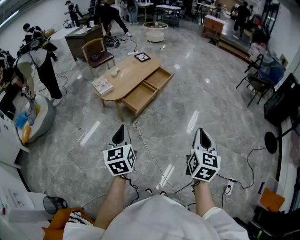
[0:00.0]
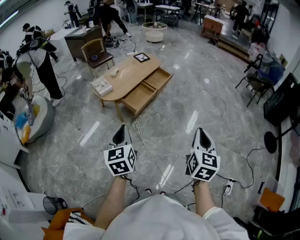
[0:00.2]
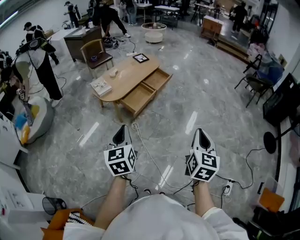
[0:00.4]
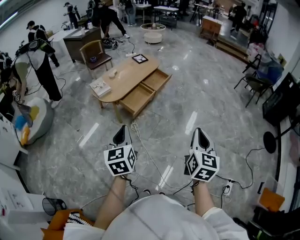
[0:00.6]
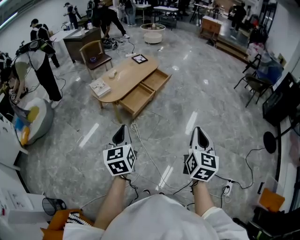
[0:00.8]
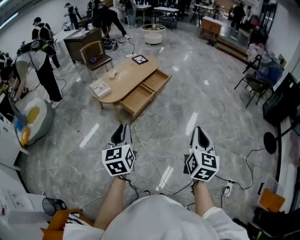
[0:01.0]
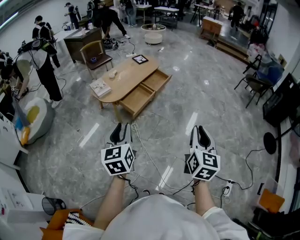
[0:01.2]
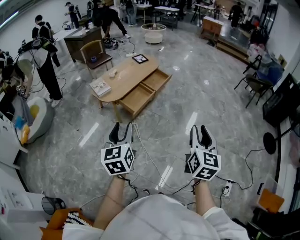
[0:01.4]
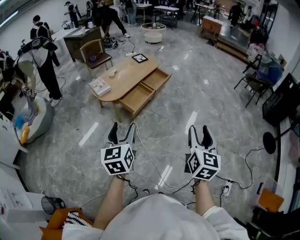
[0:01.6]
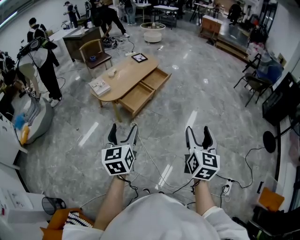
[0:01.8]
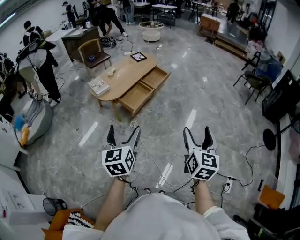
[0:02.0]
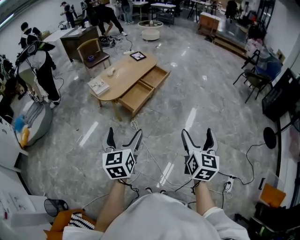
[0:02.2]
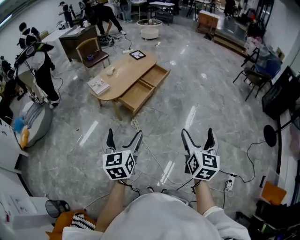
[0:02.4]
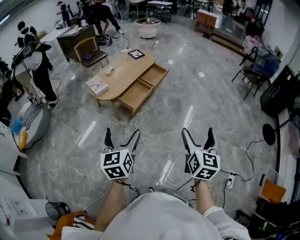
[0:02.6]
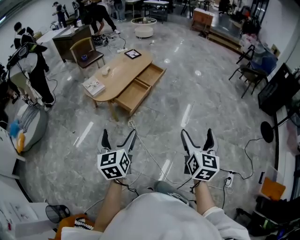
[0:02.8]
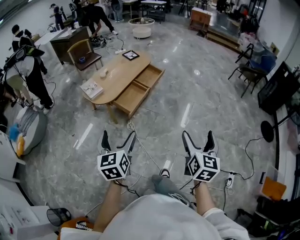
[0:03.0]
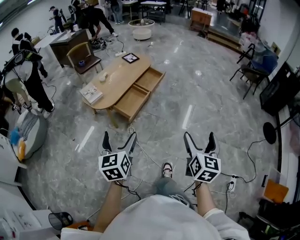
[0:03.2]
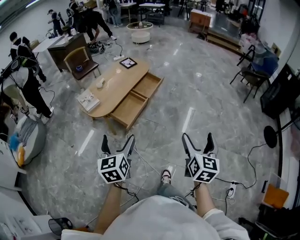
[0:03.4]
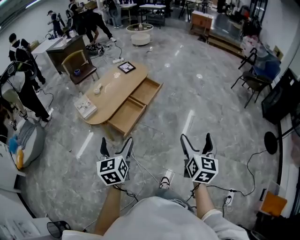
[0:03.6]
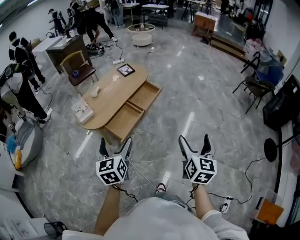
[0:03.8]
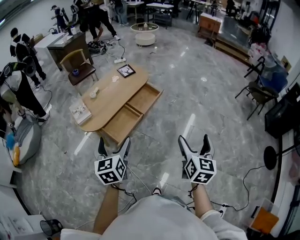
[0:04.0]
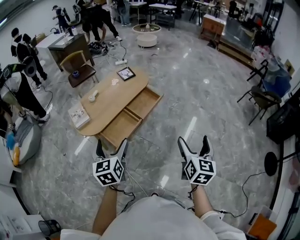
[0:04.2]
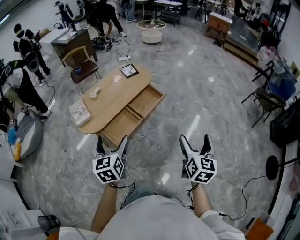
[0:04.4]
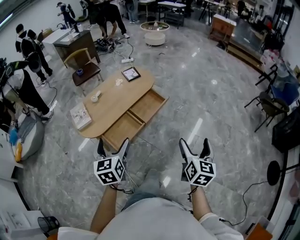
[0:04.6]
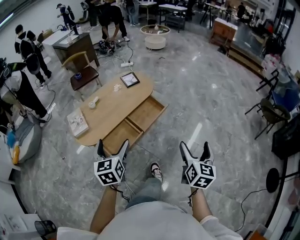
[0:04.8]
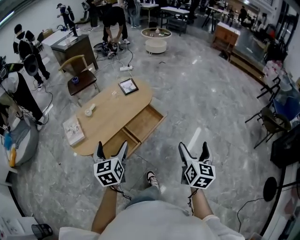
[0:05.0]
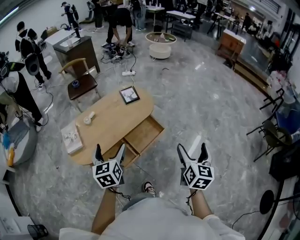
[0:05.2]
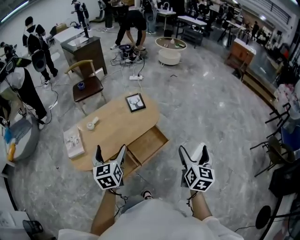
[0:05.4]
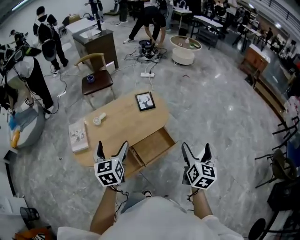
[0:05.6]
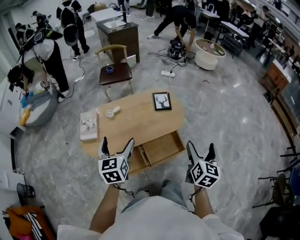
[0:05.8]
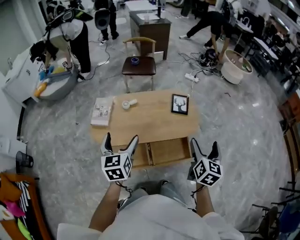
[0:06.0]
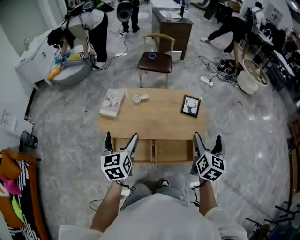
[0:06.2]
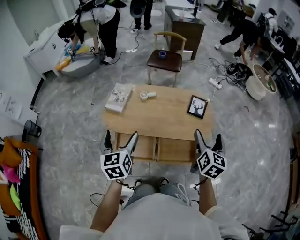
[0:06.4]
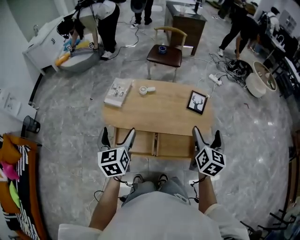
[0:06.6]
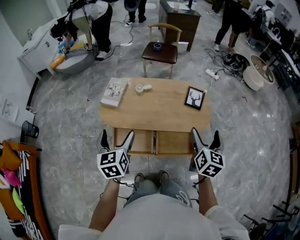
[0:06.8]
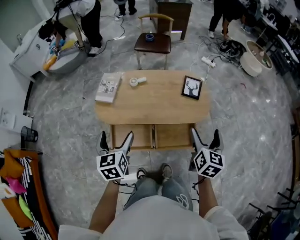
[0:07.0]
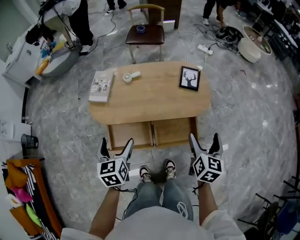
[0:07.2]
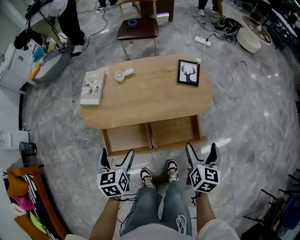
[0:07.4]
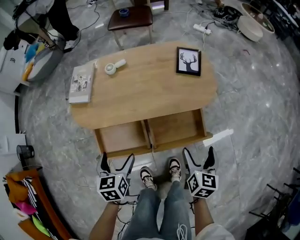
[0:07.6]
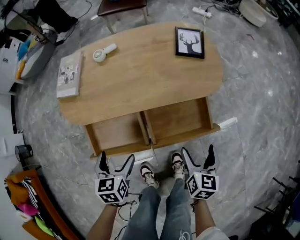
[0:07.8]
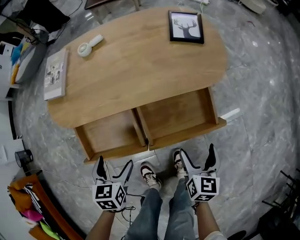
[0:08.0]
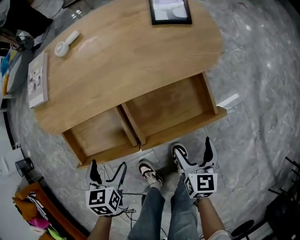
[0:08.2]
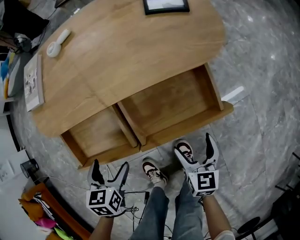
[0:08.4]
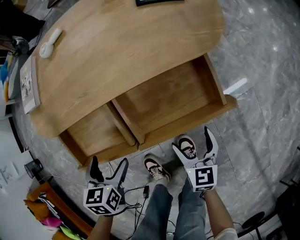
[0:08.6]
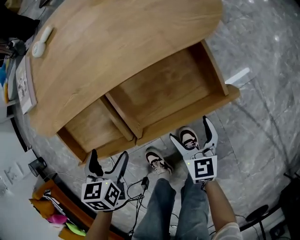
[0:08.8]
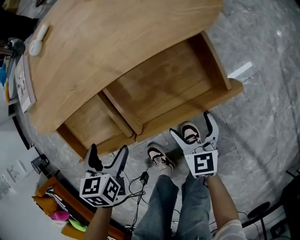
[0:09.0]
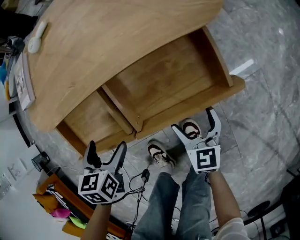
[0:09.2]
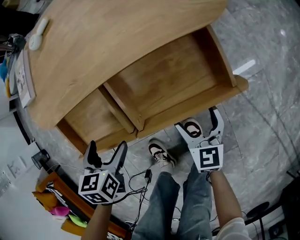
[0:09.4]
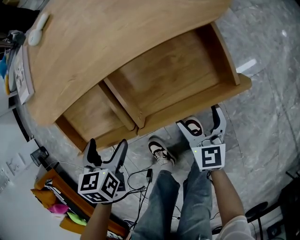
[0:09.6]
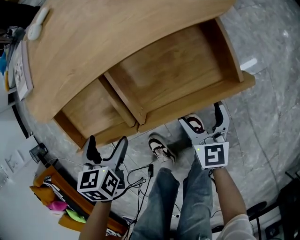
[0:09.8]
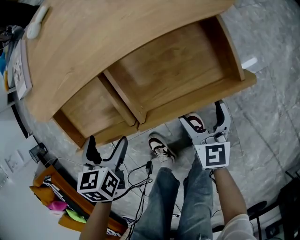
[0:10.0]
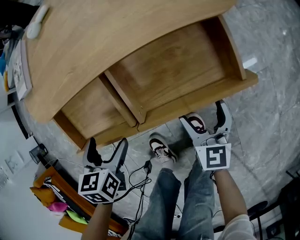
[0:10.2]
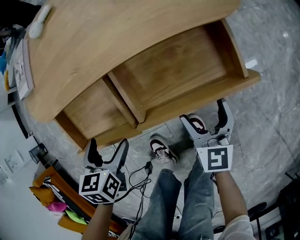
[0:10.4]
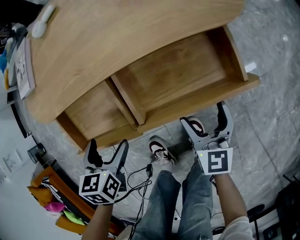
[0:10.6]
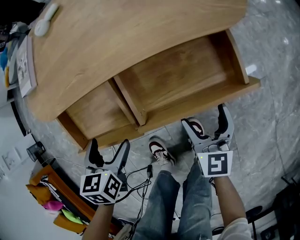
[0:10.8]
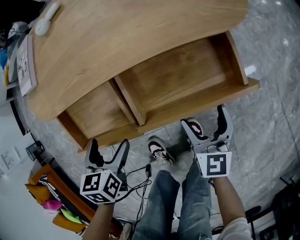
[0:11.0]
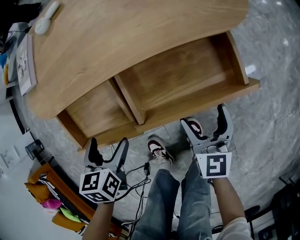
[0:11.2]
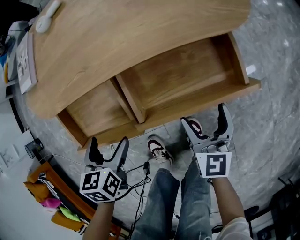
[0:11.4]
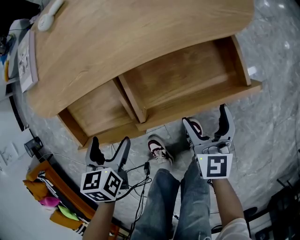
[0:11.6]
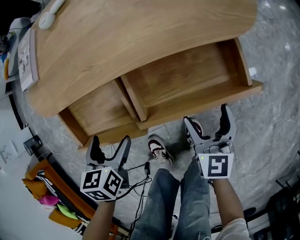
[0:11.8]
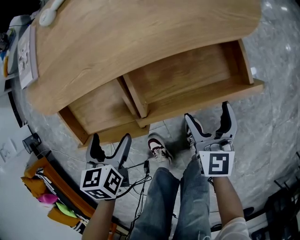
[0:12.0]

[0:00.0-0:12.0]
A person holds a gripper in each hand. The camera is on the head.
0:00.0 to 0:01.6: The right gripper opens its fingers, while the left gripper opens its fingers.
0:01.6 to 0:03.0: The left gripper changes place by roughly 5 cm, and opens. Meanwhile the right gripper changes place by some 5 cm, and opens.
0:03.0 to 0:04.4: Both grippers travel together forward, approximately 40 cm.
0:04.4 to 0:06.0: The right gripper changes place by about 60 cm, and changes its angle by some 30 degrees, while the left gripper shifts by approximately 35 cm, and changes its angle by roughly 40 degrees.
0:06.0 to 0:07.6: The two grippers go approximately 30 cm downward. The left gripper rotates some 20 degrees.
0:07.6 to 0:09.0: The grippers both shift downward by about 25 cm. The left gripper changes its angle by about 20 degrees.
0:09.0 to 0:10.4: The grippers stay close to where they were, moving slightly.
0:10.4 to 0:12.0: The grippers make only small movements.

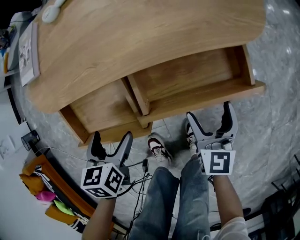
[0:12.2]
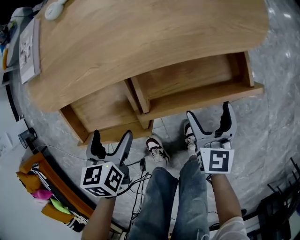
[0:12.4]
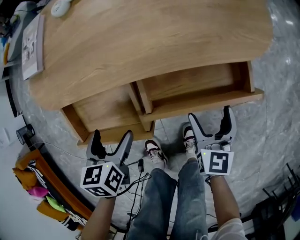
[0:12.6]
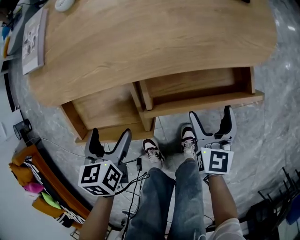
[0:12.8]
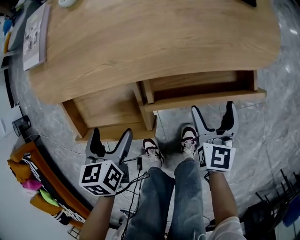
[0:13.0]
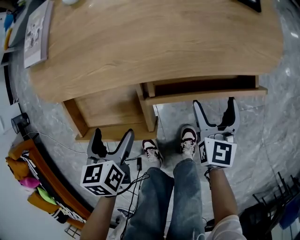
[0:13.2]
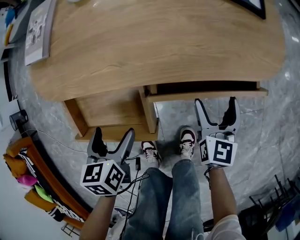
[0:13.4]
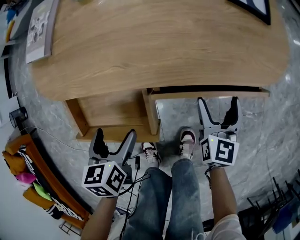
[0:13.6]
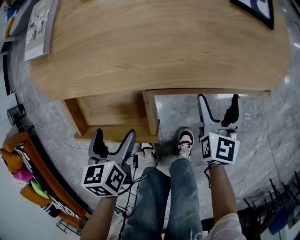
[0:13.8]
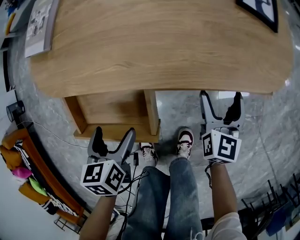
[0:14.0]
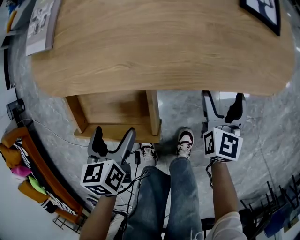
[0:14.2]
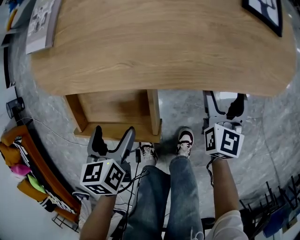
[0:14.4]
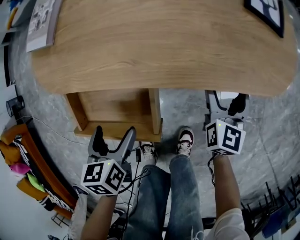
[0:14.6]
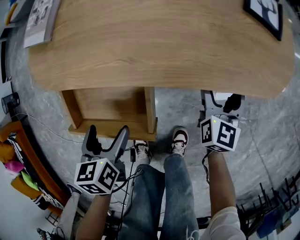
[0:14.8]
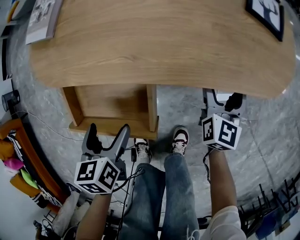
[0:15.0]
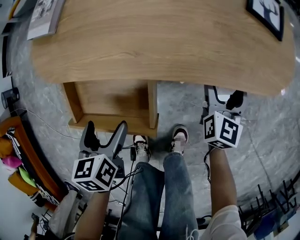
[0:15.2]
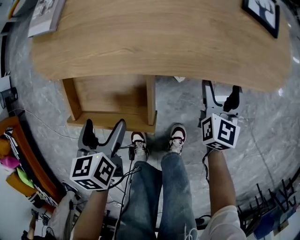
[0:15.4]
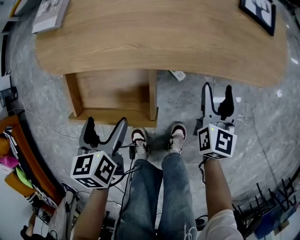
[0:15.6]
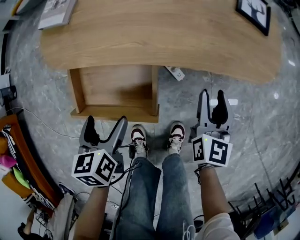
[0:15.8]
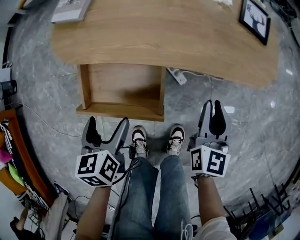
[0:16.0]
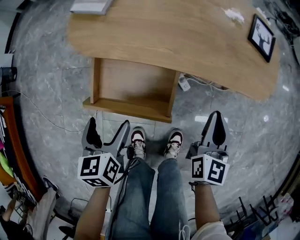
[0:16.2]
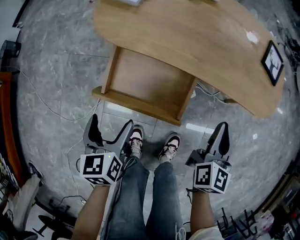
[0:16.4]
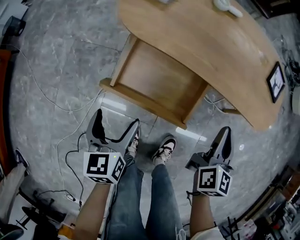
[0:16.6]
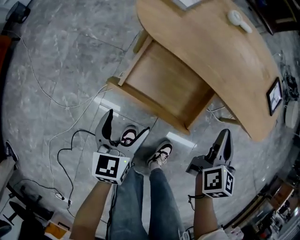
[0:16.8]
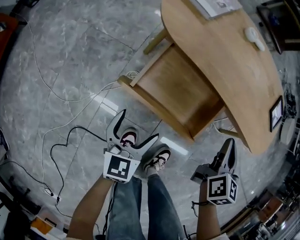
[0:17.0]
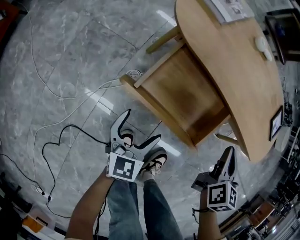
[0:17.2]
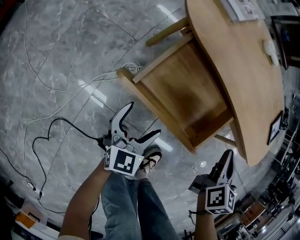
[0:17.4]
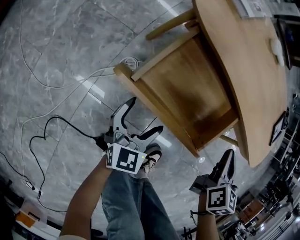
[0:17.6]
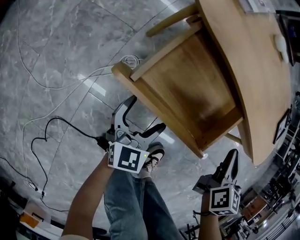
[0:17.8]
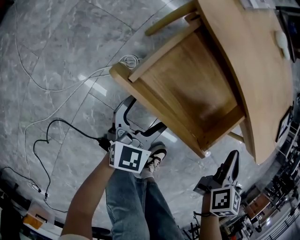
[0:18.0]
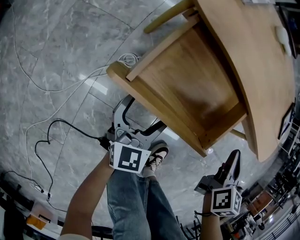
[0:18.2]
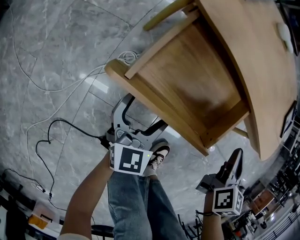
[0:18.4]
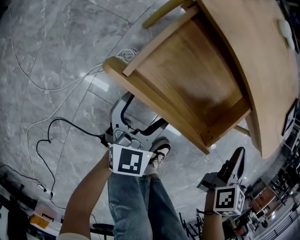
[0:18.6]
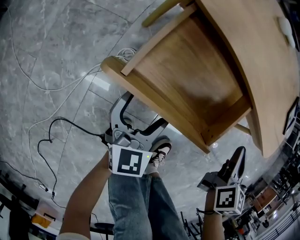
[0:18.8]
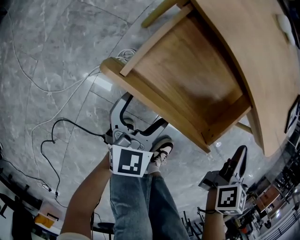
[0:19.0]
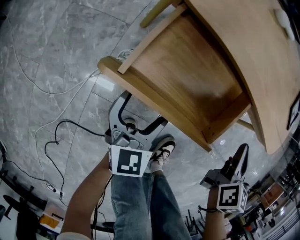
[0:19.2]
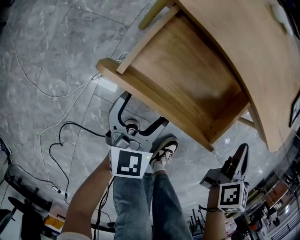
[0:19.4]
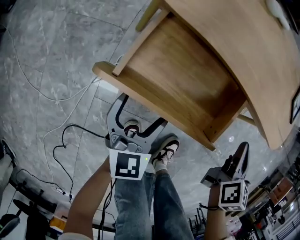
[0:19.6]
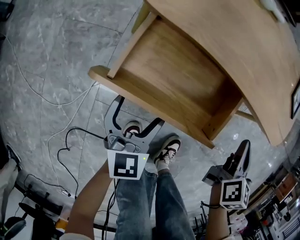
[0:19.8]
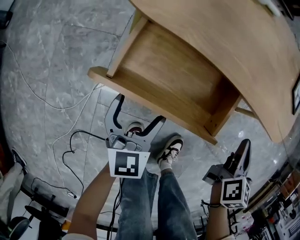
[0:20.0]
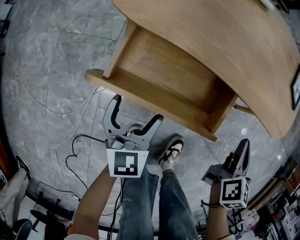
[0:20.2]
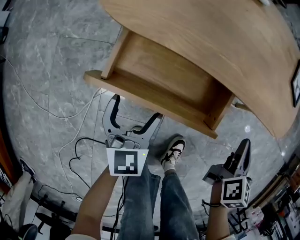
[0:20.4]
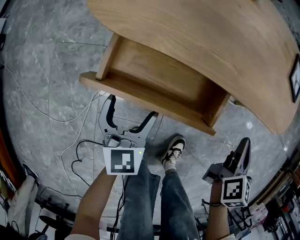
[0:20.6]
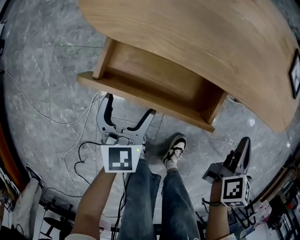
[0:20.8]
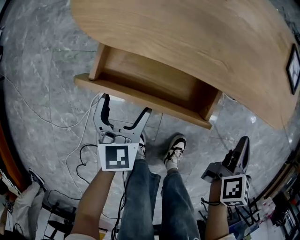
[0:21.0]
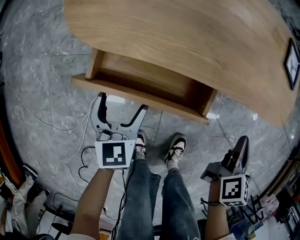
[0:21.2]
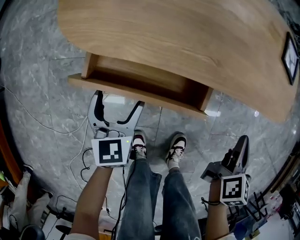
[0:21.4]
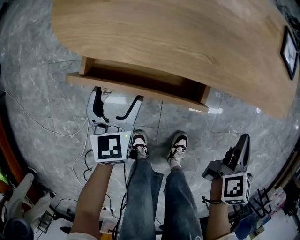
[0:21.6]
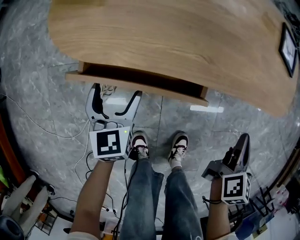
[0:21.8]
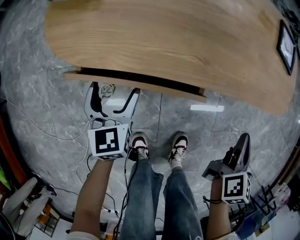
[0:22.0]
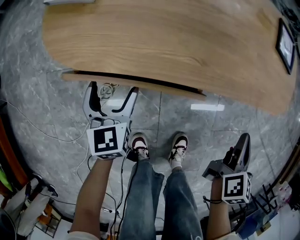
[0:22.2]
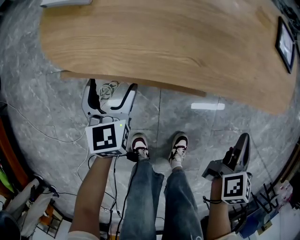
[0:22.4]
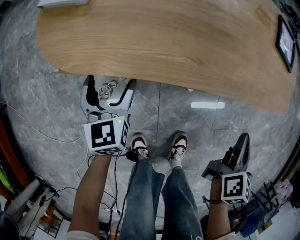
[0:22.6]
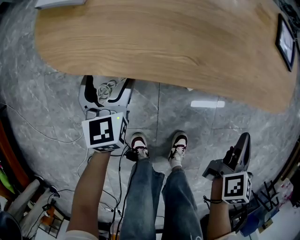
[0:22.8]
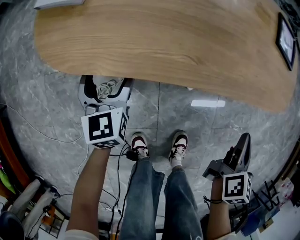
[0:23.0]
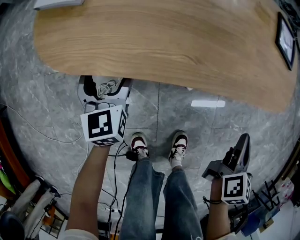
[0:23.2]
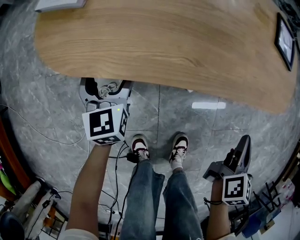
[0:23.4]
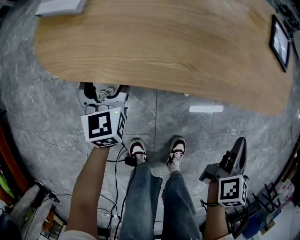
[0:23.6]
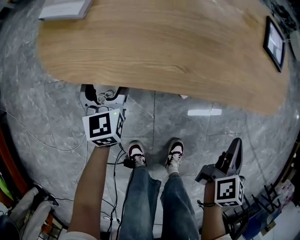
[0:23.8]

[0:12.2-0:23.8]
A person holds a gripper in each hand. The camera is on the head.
0:12.2 to 0:13.6: The right gripper moves forward, about 10 cm.
0:13.6 to 0:15.0: The right gripper goes some 5 cm forward.
0:15.0 to 0:16.6: The left gripper shifts roughly 20 cm to the left, backward and upward, and rotates some 30 degrees. Meanwhile the right gripper heads upward, to the left and backward, covering roughly 25 cm, and closes.
0:16.6 to 0:18.0: The left gripper heads downward, covering approximately 15 cm, and swivels about 20 degrees. The right gripper heads downward, covering roughly 10 cm, and swivels about 20 degrees.
0:18.0 to 0:19.4: There are only small adjustments of the grippers.
0:19.4 to 0:21.0: The right gripper travels to the right by some 10 cm, and changes its angle by about 20 degrees. The left gripper is displaced forward by approximately 10 cm.
0:21.0 to 0:22.4: The left gripper goes roughly 10 cm forward.
0:22.4 to 0:23.8: There are only small adjustments of the grippers.
